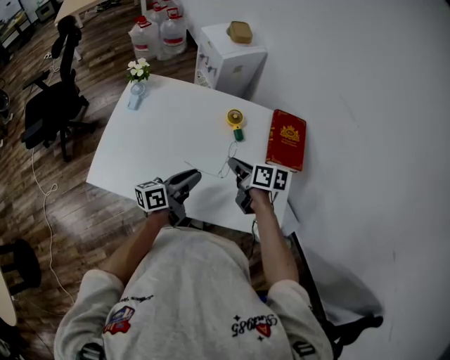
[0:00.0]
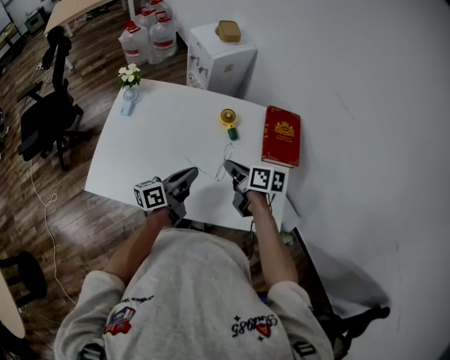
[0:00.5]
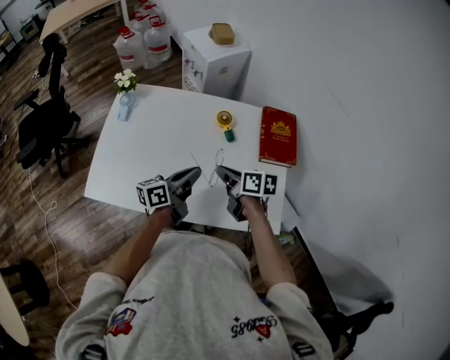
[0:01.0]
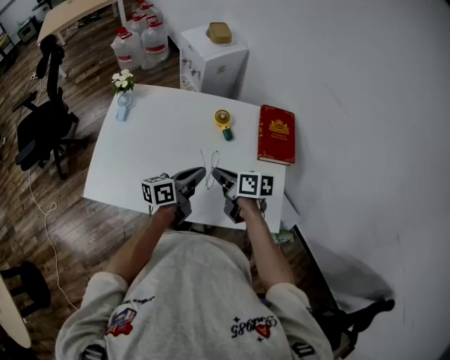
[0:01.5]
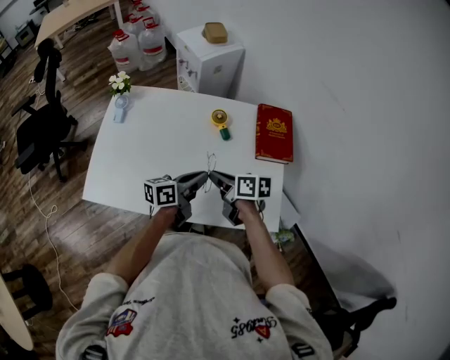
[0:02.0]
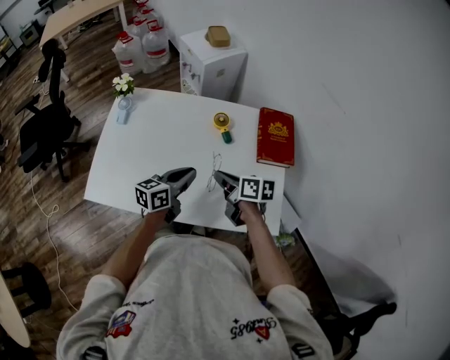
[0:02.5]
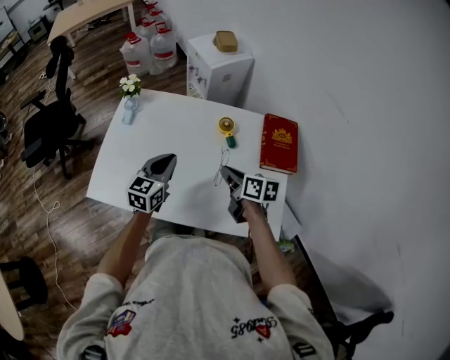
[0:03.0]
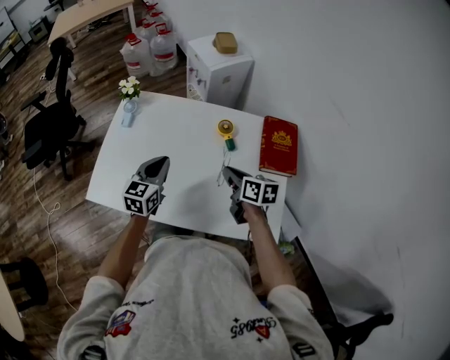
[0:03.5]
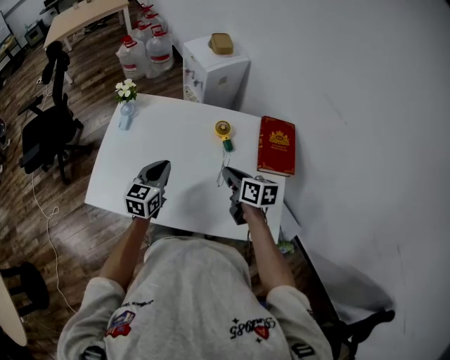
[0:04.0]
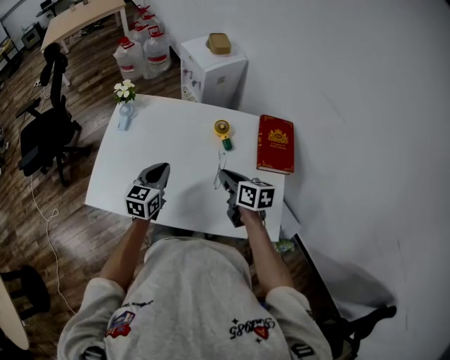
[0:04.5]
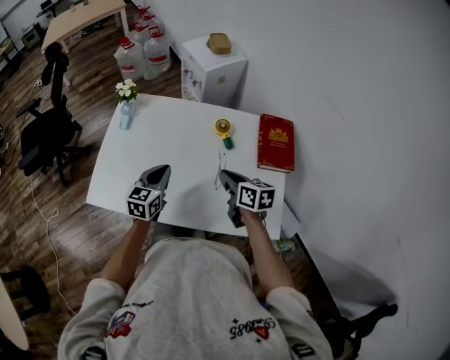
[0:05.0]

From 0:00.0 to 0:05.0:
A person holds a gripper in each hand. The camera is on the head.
From 0:00.0 to 0:02.5: The left gripper swivels some 20 degrees.
From 0:02.5 to 0:05.0: The left gripper travels to the left by roughly 10 cm, and swivels roughly 30 degrees.

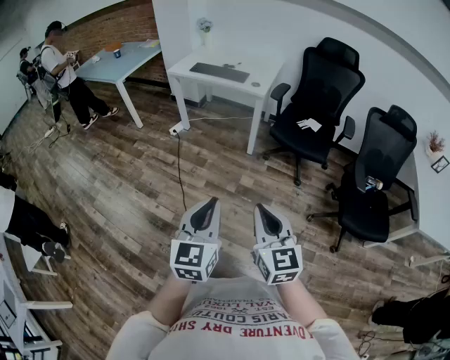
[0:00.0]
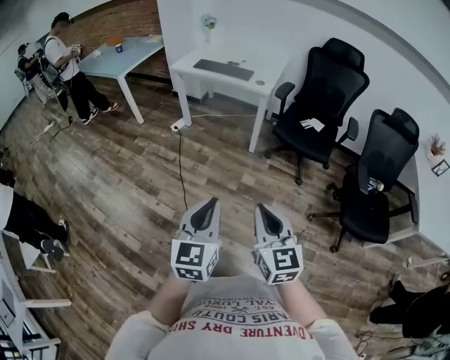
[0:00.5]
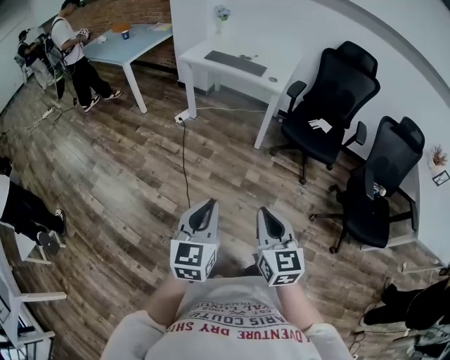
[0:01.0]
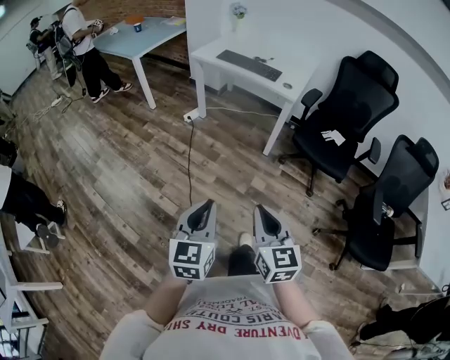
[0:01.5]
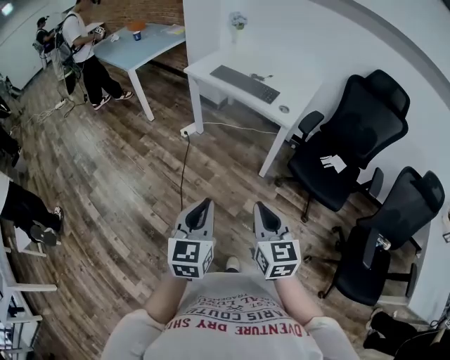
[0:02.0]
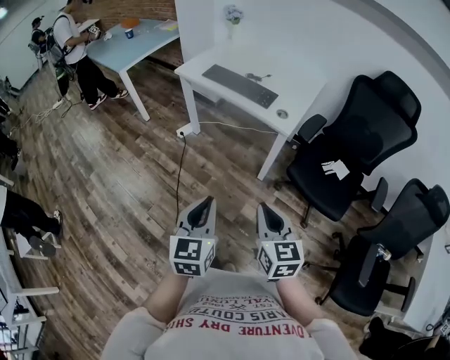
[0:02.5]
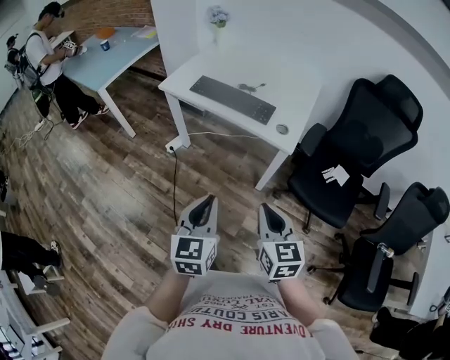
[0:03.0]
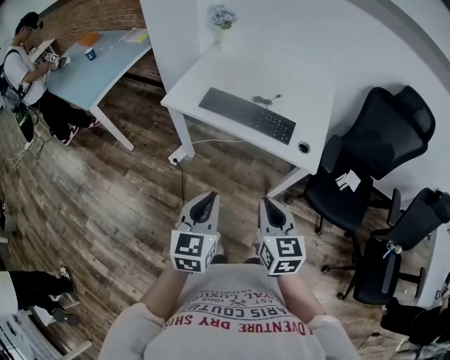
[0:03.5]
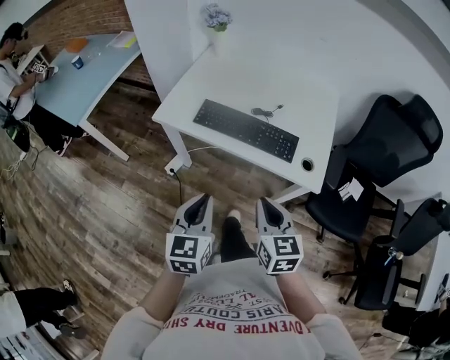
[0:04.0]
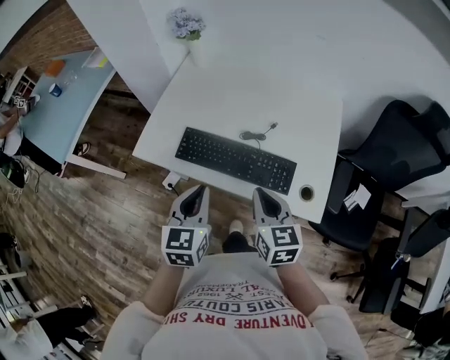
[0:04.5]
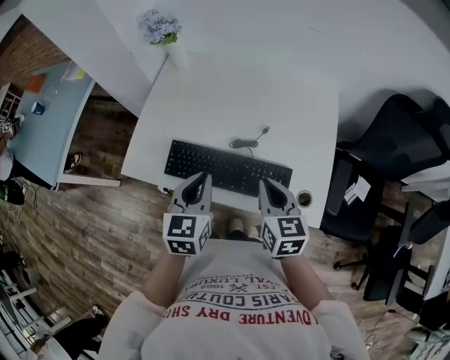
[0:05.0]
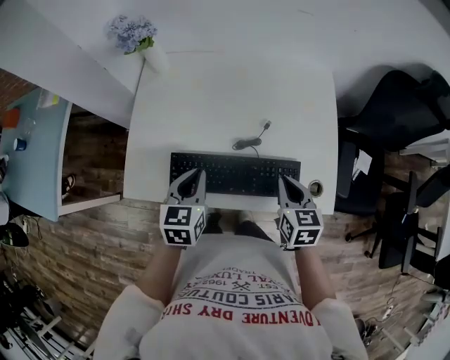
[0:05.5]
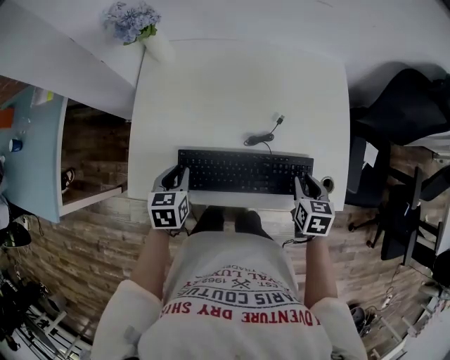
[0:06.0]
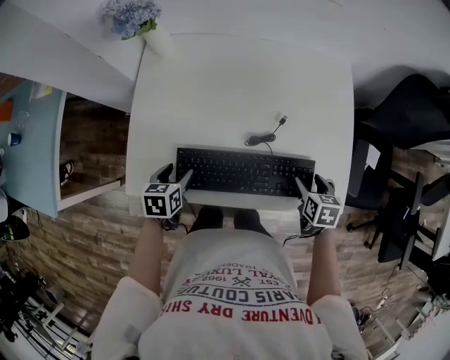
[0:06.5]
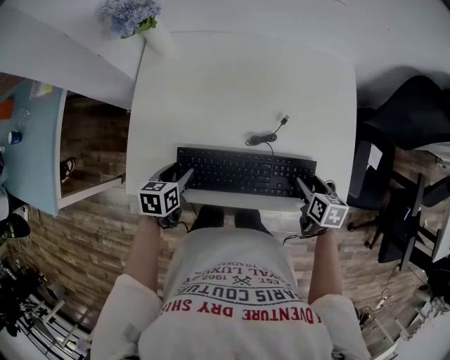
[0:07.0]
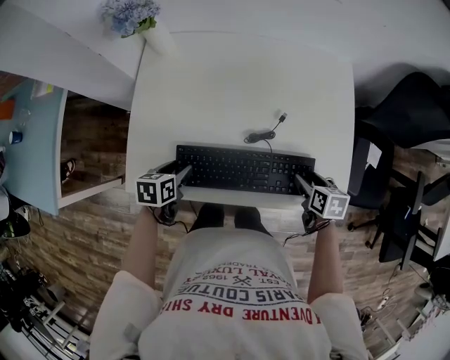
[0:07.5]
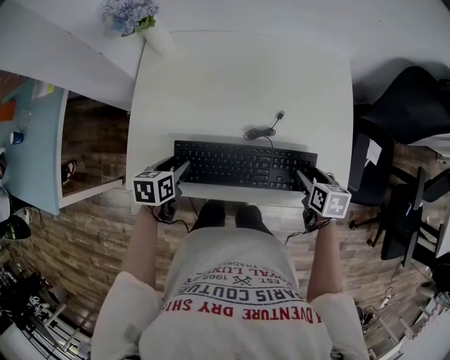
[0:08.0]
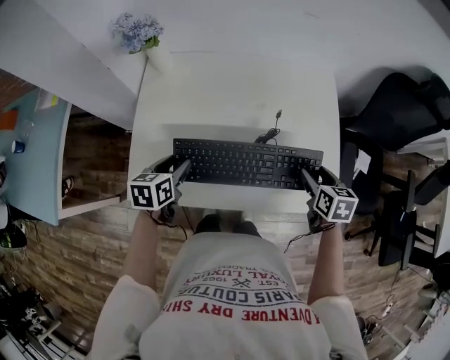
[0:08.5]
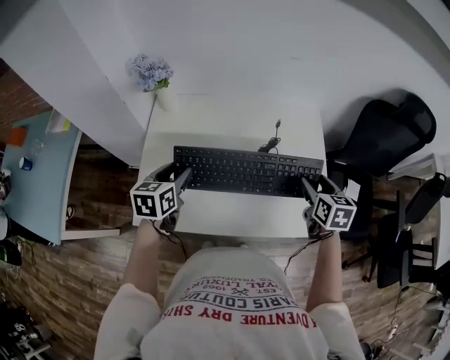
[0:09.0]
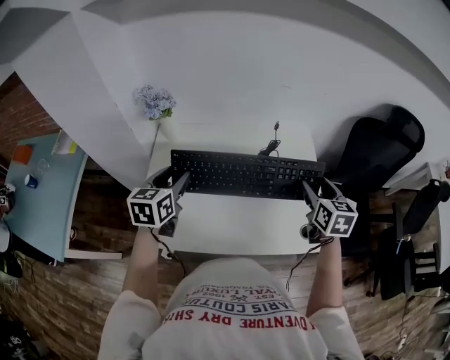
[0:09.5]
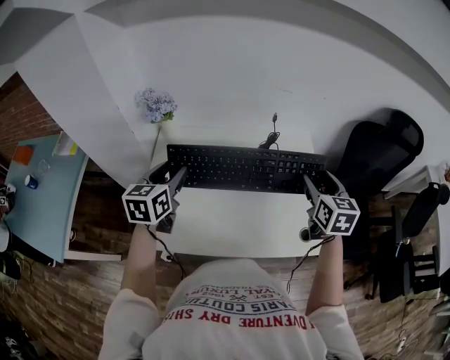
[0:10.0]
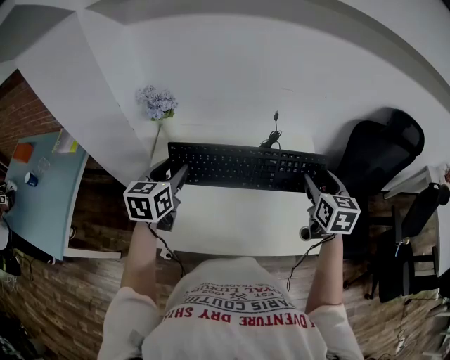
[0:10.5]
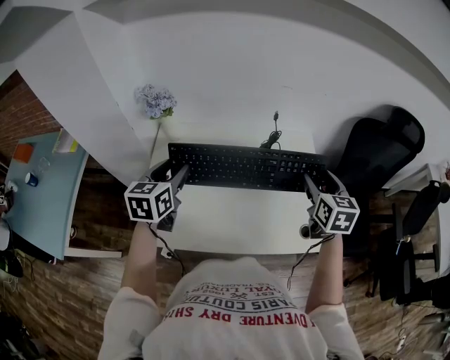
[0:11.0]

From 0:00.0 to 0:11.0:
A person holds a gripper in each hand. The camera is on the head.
From 0:00.0 to 0:02.0: Both grippers travel together forward, some 30 cm.
From 0:02.0 to 0:03.5: Both grippers are carried forward, approximately 40 cm.
From 0:03.5 to 0:05.5: The two grippers travel together, forward, about 40 cm. The left gripper rotates some 20 degrees. Meanwhile the right gripper changes its angle by approximately 30 degrees.
From 0:05.5 to 0:07.5: The left gripper travels downward and to the left by approximately 15 cm, rotates some 30 degrees, and opens its fingers, while the right gripper is displaced downward and to the right by about 15 cm, rotates about 30 degrees, and opens its fingers.
From 0:07.5 to 0:09.0: Both grippers travel together upward, some 20 cm. The right gripper changes its angle by roughly 30 degrees, while the left gripper turns by some 30 degrees.
From 0:09.0 to 0:11.0: The grippers both shift upward by approximately 10 cm.

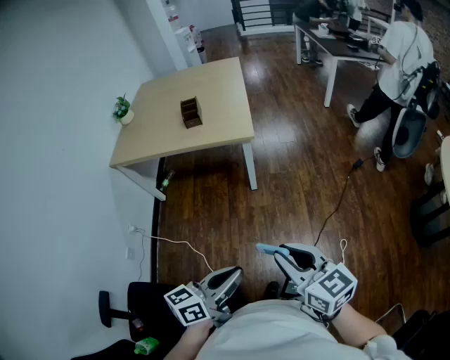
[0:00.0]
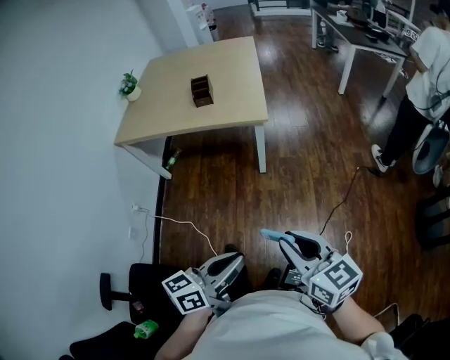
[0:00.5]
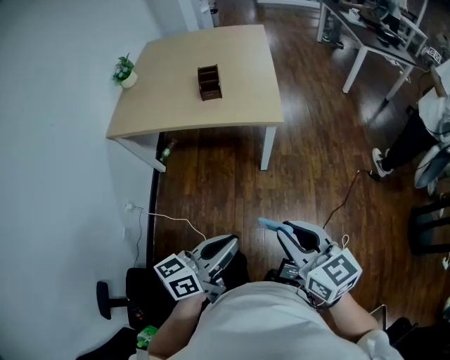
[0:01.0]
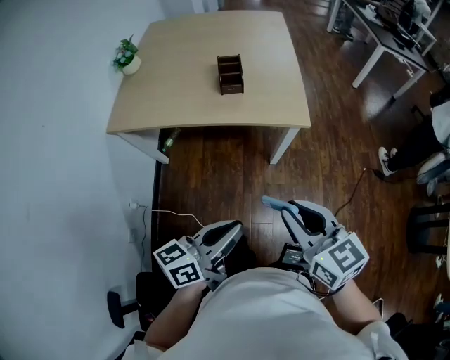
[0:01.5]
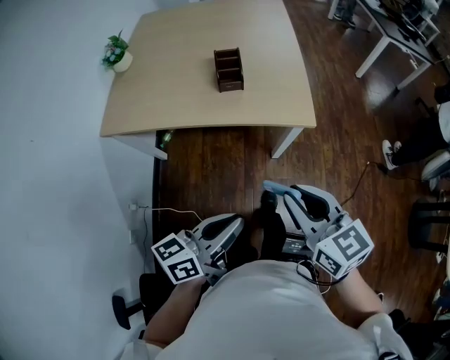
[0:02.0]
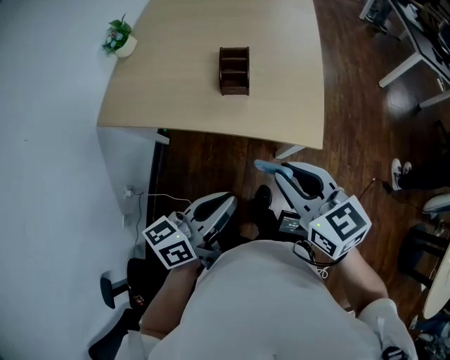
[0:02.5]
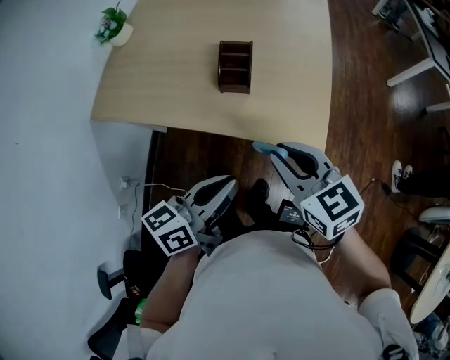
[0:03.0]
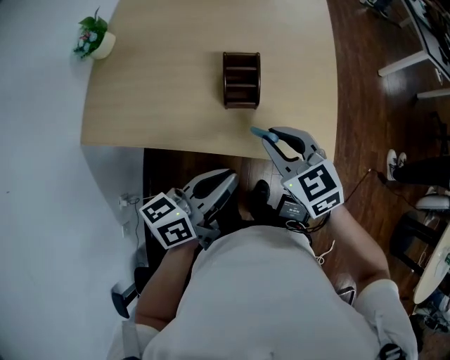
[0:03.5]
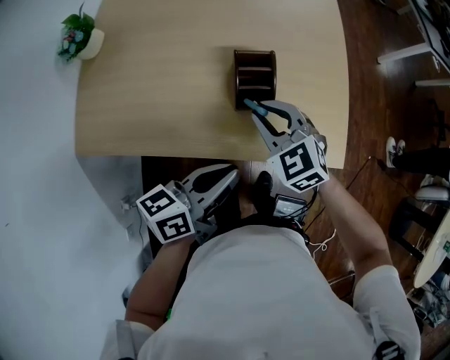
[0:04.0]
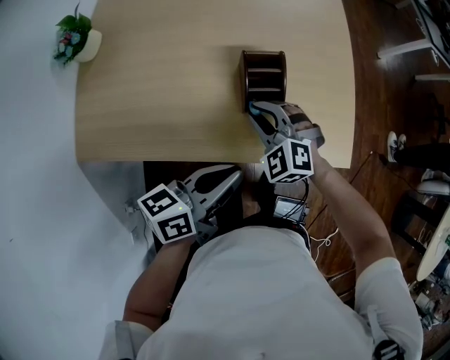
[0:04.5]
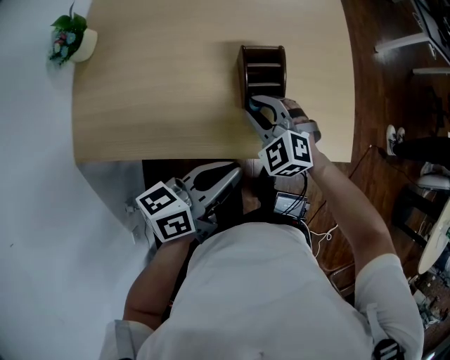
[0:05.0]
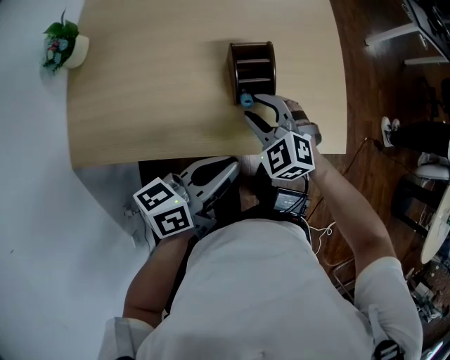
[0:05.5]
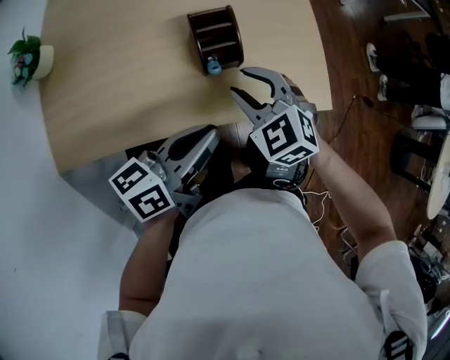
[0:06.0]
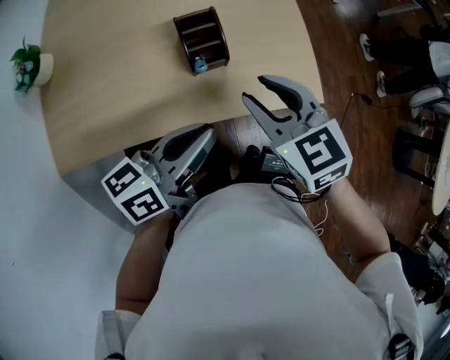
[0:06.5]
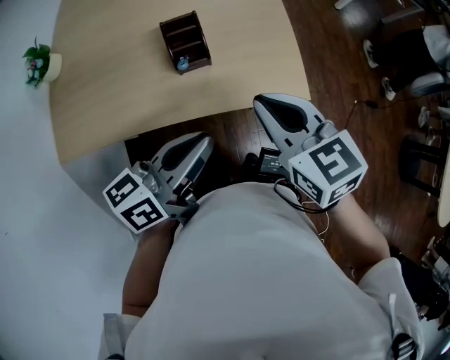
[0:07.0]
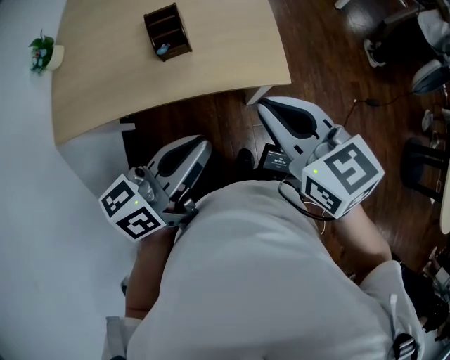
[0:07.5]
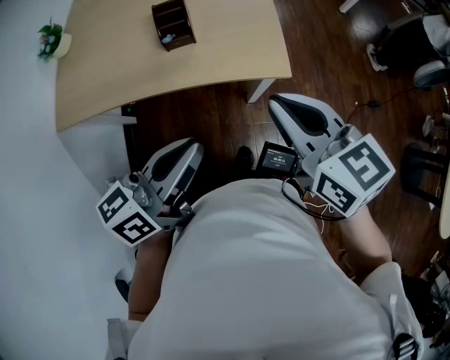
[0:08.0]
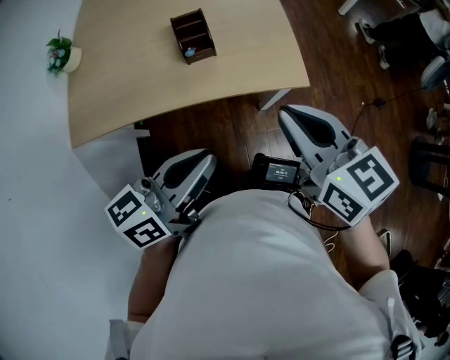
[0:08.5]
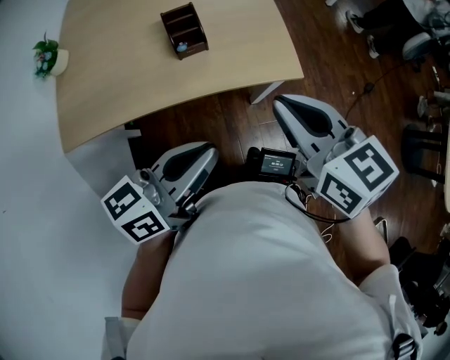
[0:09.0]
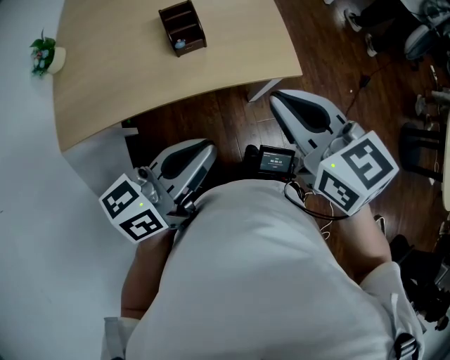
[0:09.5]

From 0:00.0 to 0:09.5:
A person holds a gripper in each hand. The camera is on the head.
From 0:00.0 to 0:02.0: The grippers both shift forward and to the left by some 40 cm.
From 0:02.0 to 0:04.0: Both grippers travel together forward, some 40 cm. The right gripper swivels approximately 40 degrees.
From 0:04.0 to 0:05.5: The right gripper goes about 5 cm downward.
From 0:05.5 to 0:07.5: The right gripper travels to the right, upward and backward by roughly 40 cm, rolls clockwise, seen from behind, by roughly 50 degrees, and closes up. The left gripper travels to the right, backward and upward by about 25 cm.
From 0:07.5 to 0:09.5: The grippers both shift to the left by about 5 cm.

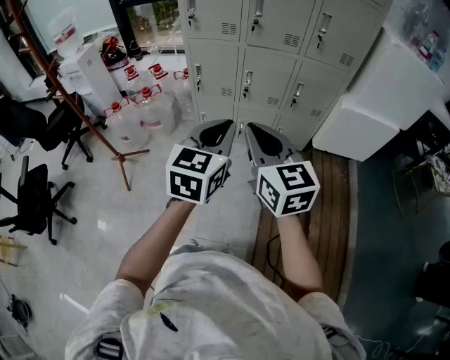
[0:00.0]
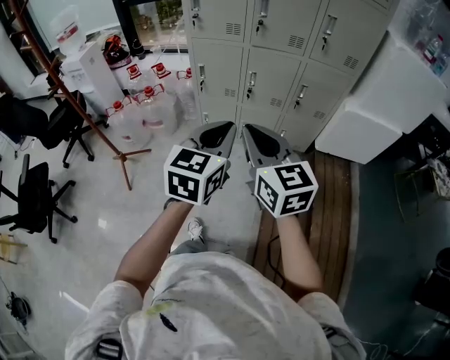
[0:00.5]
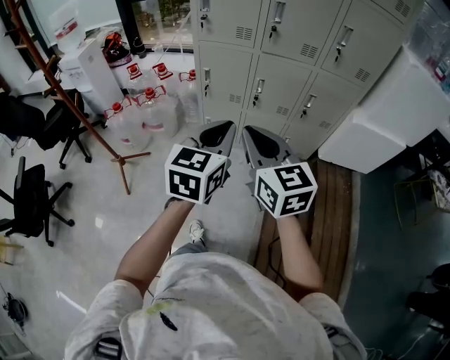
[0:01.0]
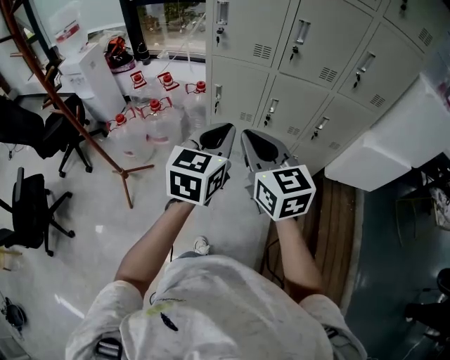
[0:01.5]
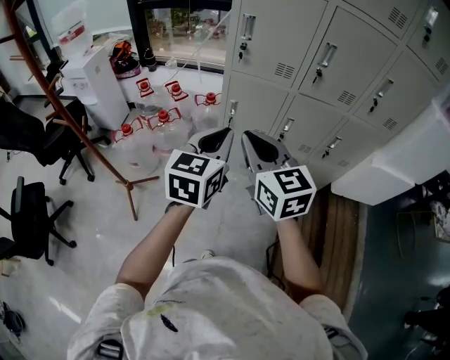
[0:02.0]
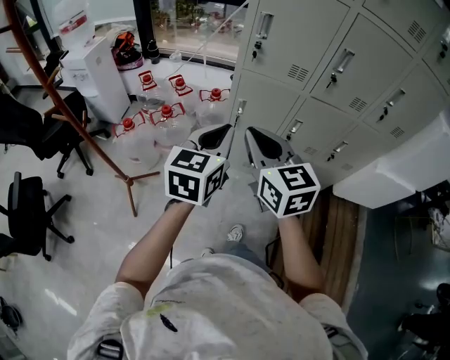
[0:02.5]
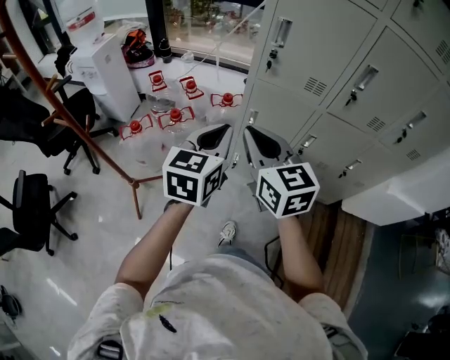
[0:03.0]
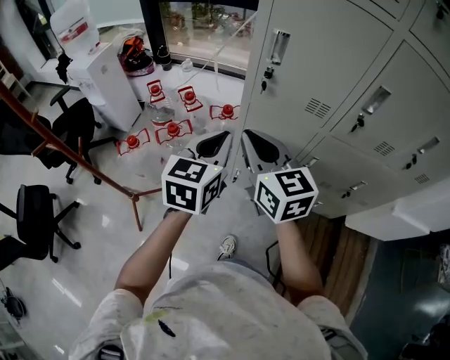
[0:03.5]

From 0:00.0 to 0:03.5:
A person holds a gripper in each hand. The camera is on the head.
From 0:00.0 to 0:02.0: Both grippers travel together forward and to the left, some 35 cm.
From 0:02.0 to 0:03.5: The grippers both shift forward by some 20 cm.
